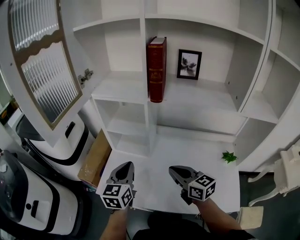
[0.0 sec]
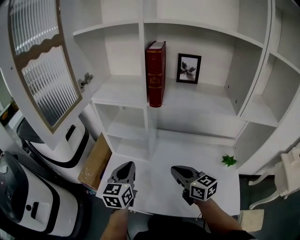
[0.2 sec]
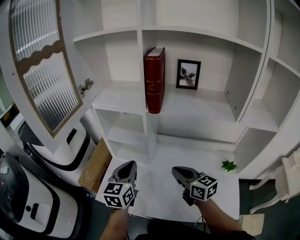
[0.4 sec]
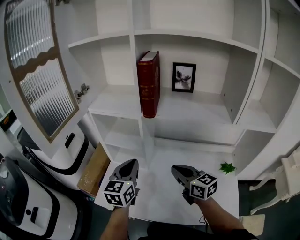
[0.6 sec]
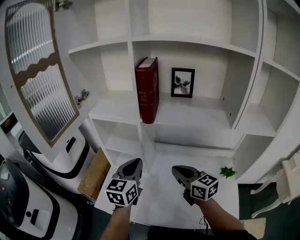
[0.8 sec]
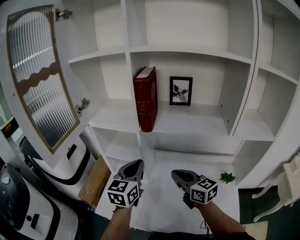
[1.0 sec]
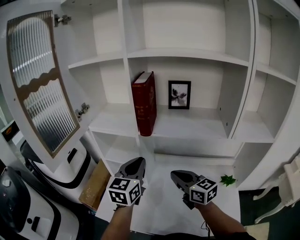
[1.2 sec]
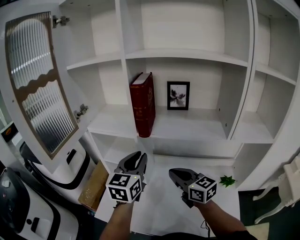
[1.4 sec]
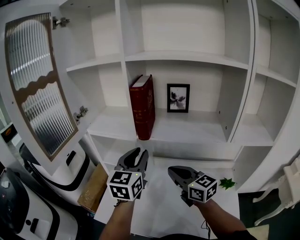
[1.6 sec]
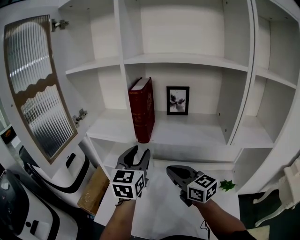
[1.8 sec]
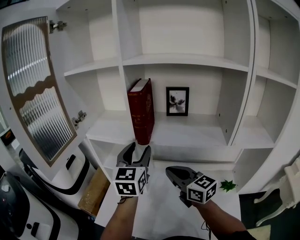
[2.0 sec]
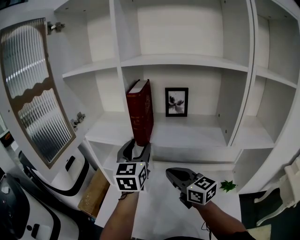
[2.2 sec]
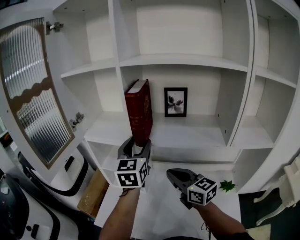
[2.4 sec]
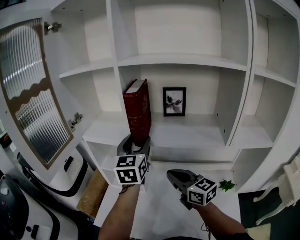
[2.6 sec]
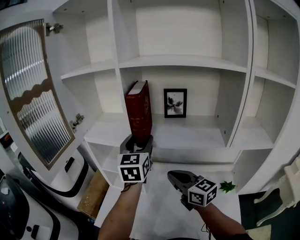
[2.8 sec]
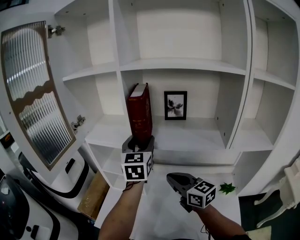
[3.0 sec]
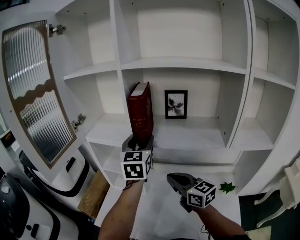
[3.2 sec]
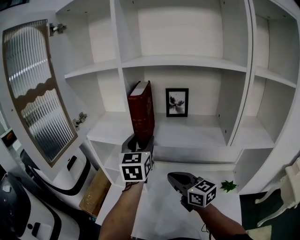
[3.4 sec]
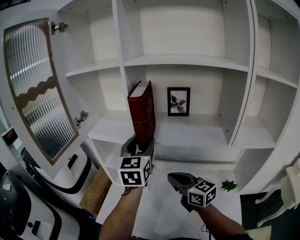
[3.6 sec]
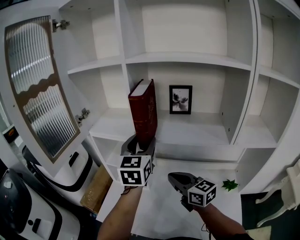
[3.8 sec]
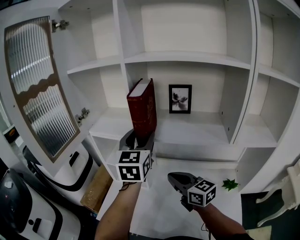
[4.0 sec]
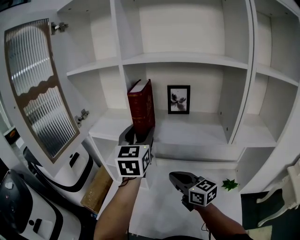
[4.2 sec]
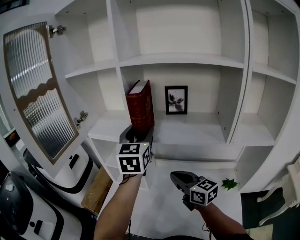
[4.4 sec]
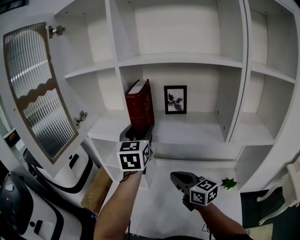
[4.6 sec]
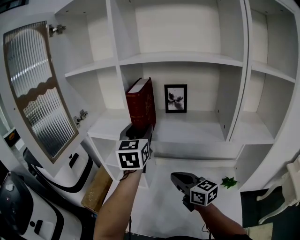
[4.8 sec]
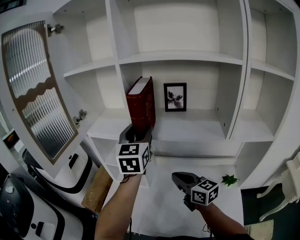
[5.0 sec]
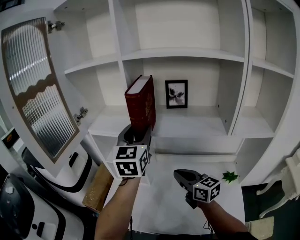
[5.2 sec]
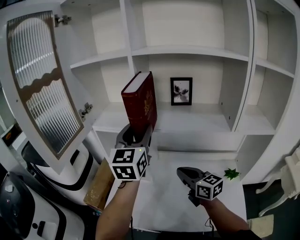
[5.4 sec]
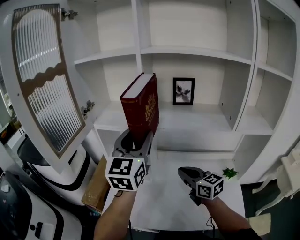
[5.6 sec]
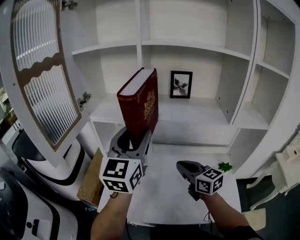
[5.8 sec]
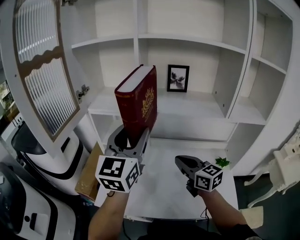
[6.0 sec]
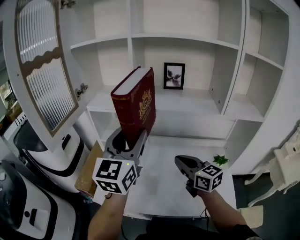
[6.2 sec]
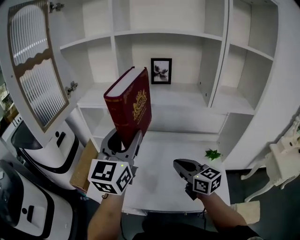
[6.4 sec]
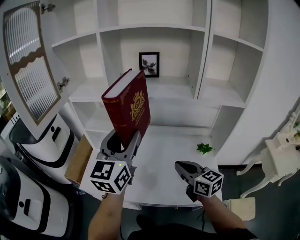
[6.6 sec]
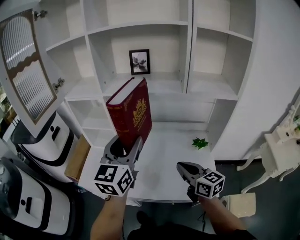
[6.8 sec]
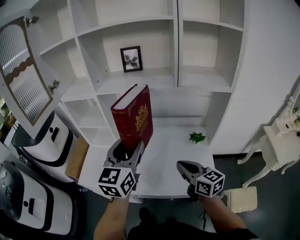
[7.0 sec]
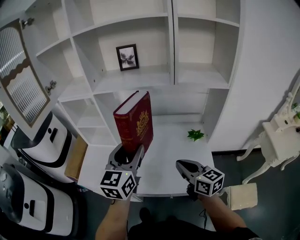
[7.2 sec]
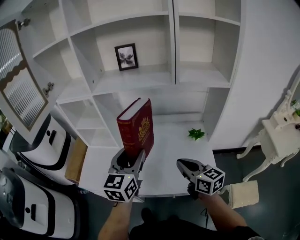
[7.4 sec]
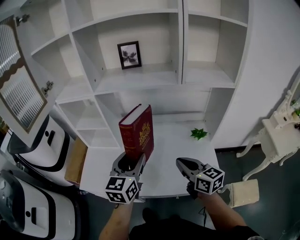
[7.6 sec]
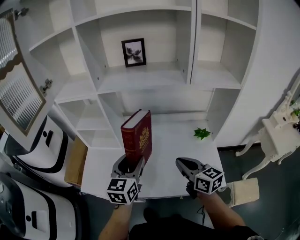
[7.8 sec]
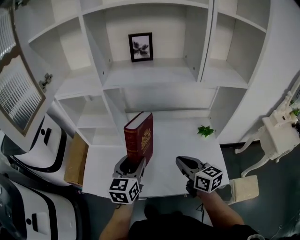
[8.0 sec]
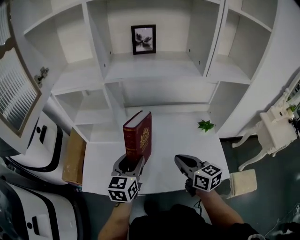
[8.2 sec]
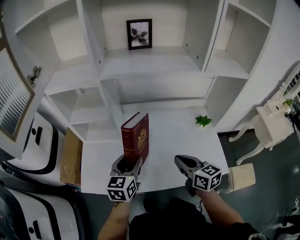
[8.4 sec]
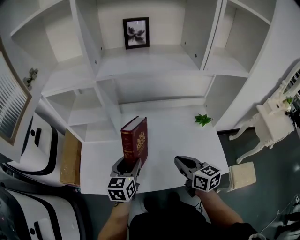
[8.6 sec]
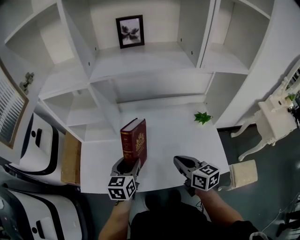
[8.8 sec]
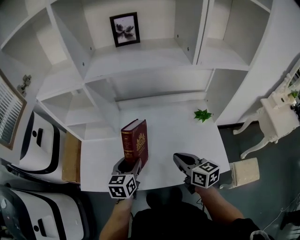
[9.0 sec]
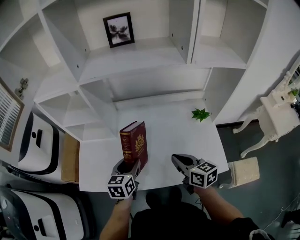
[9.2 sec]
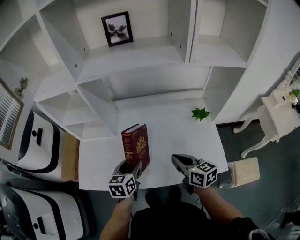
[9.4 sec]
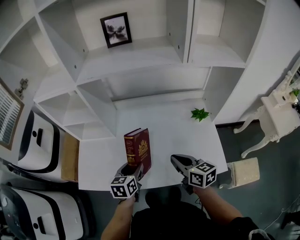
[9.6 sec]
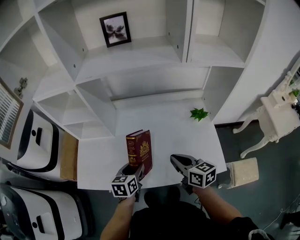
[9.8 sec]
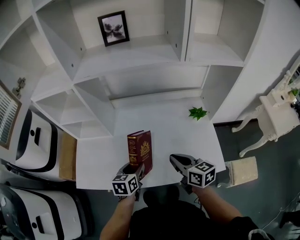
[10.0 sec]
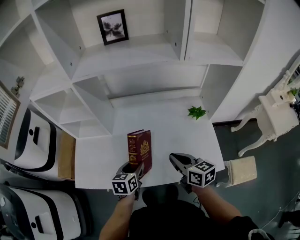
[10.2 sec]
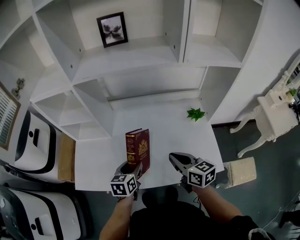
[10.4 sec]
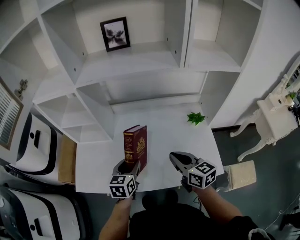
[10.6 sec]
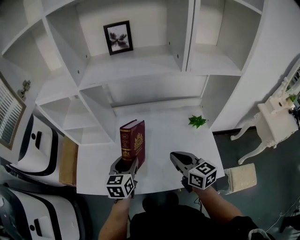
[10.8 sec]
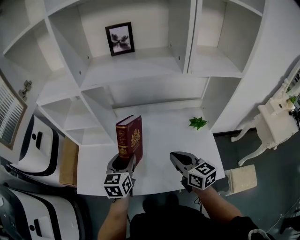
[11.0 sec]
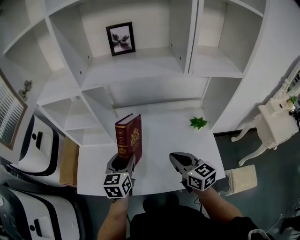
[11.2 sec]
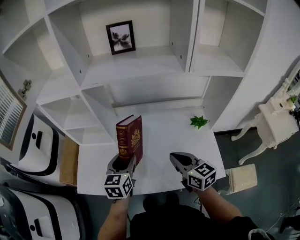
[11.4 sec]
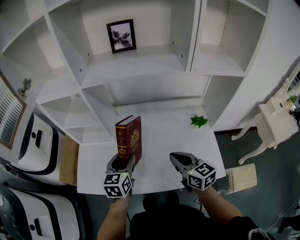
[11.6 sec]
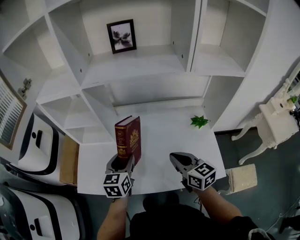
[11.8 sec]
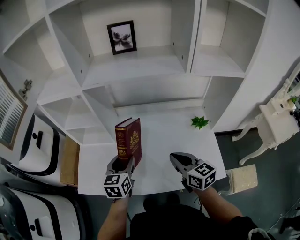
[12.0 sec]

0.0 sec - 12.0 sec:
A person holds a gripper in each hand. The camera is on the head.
0.0 sec - 1.6 sec: The left gripper goes roughly 25 cm upward, to the right and forward, and opens up; the right gripper heads upward, forward and to the right, covering roughly 15 cm.
1.6 sec - 3.0 sec: The left gripper is displaced forward by approximately 10 cm, and opens up.
3.0 sec - 4.4 sec: The grippers stay close to where they were, moving slightly.
4.4 sec - 6.0 sec: The right gripper ends up about 5 cm from where it was; the left gripper is displaced backward and to the left by approximately 15 cm.
6.0 sec - 7.6 sec: The right gripper moves to the right, backward and downward, some 25 cm; the left gripper travels downward, to the right and backward by some 30 cm, and turns by roughly 20 degrees.
7.6 sec - 9.0 sec: The left gripper is displaced downward and to the left by about 20 cm, and rotates some 20 degrees, while the right gripper heads downward and to the left, covering roughly 10 cm.
9.0 sec - 10.4 sec: The left gripper heads downward, covering about 5 cm.
10.4 sec - 12.0 sec: The left gripper travels upward by about 10 cm.

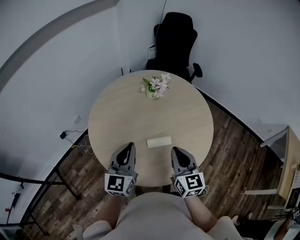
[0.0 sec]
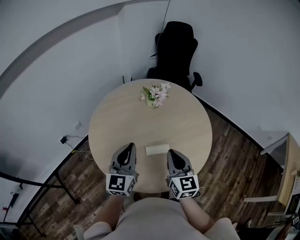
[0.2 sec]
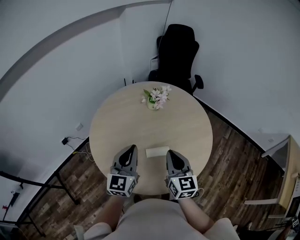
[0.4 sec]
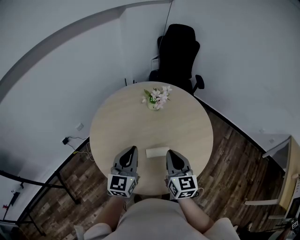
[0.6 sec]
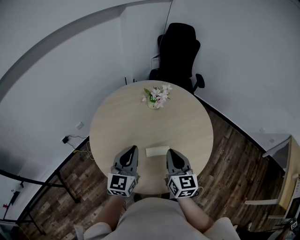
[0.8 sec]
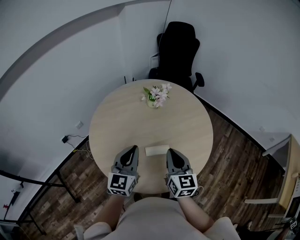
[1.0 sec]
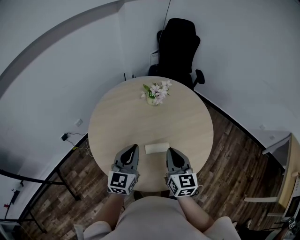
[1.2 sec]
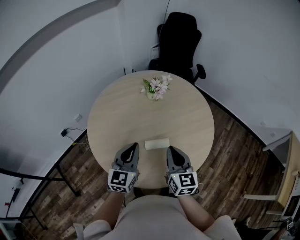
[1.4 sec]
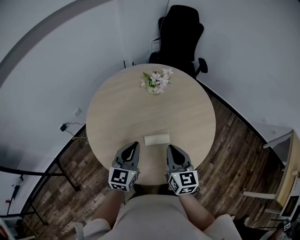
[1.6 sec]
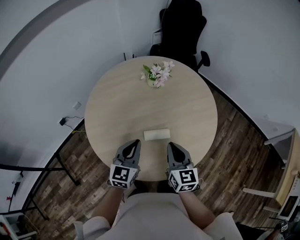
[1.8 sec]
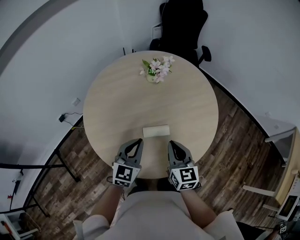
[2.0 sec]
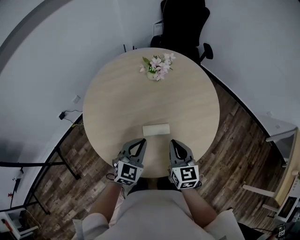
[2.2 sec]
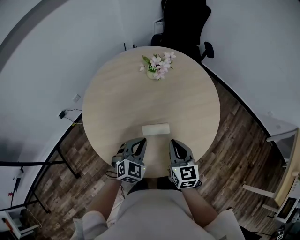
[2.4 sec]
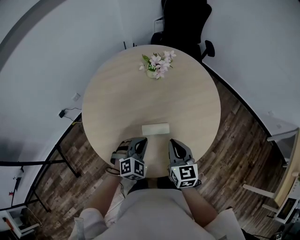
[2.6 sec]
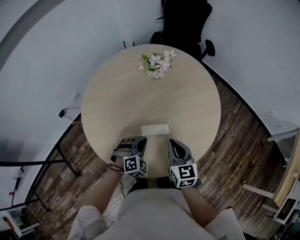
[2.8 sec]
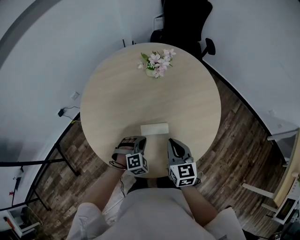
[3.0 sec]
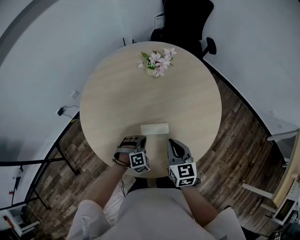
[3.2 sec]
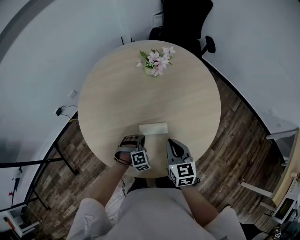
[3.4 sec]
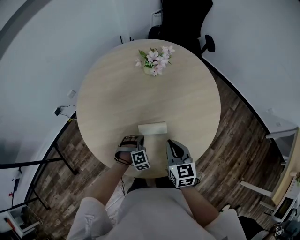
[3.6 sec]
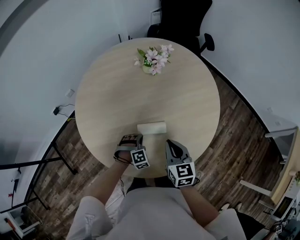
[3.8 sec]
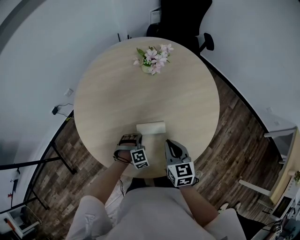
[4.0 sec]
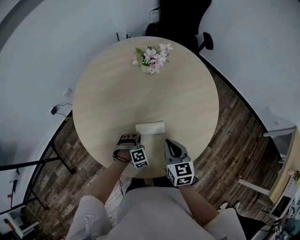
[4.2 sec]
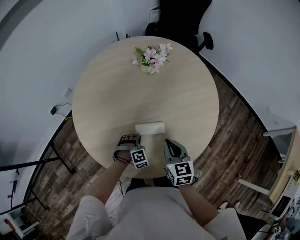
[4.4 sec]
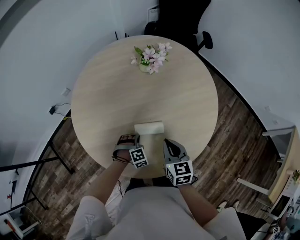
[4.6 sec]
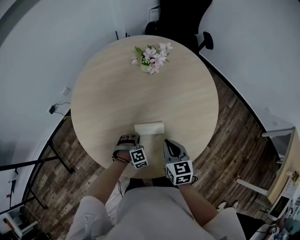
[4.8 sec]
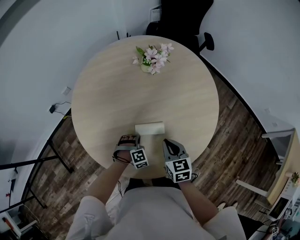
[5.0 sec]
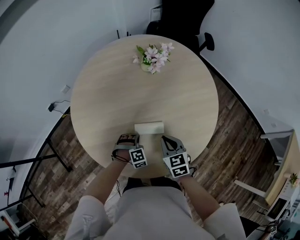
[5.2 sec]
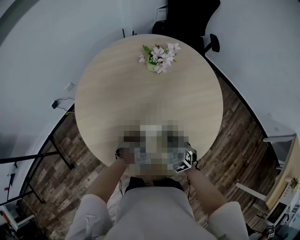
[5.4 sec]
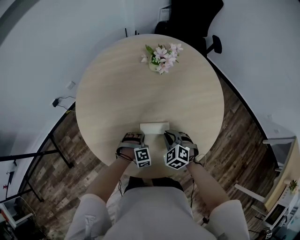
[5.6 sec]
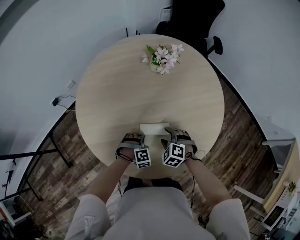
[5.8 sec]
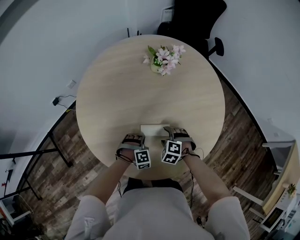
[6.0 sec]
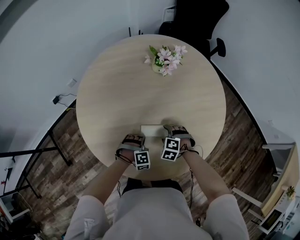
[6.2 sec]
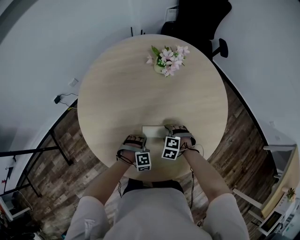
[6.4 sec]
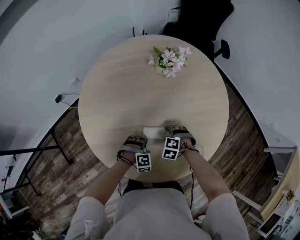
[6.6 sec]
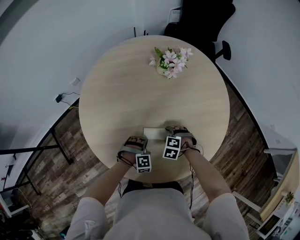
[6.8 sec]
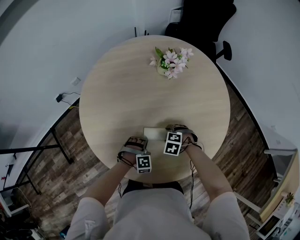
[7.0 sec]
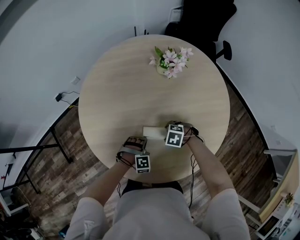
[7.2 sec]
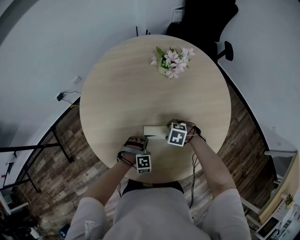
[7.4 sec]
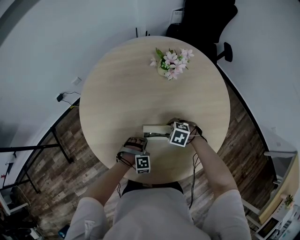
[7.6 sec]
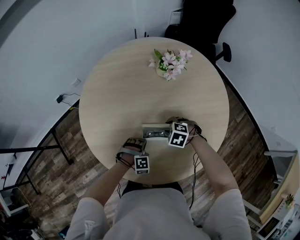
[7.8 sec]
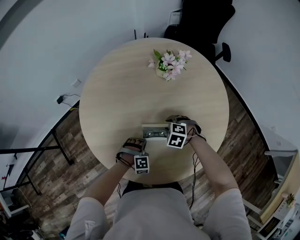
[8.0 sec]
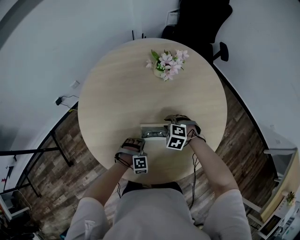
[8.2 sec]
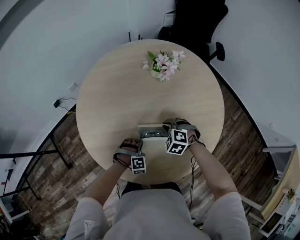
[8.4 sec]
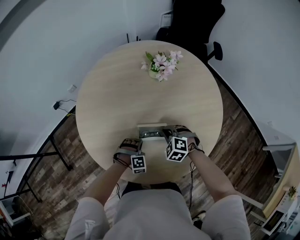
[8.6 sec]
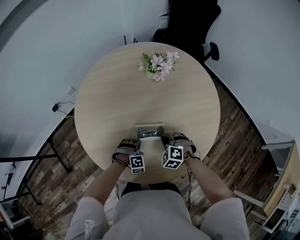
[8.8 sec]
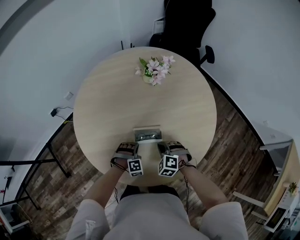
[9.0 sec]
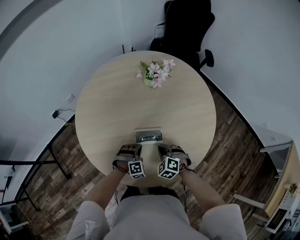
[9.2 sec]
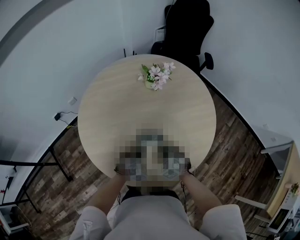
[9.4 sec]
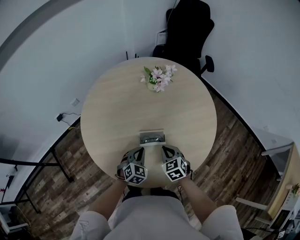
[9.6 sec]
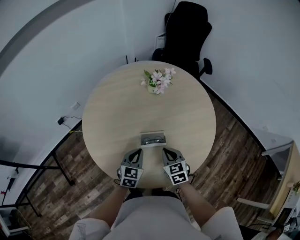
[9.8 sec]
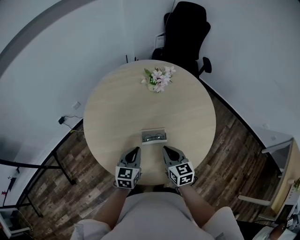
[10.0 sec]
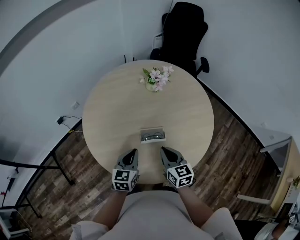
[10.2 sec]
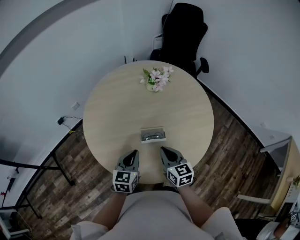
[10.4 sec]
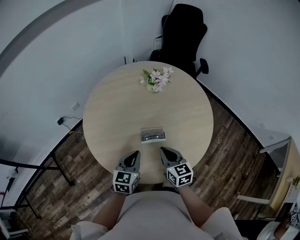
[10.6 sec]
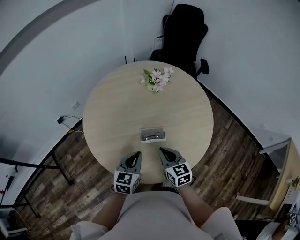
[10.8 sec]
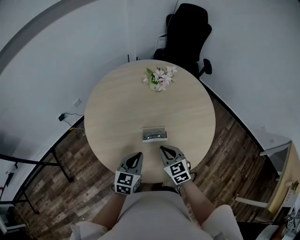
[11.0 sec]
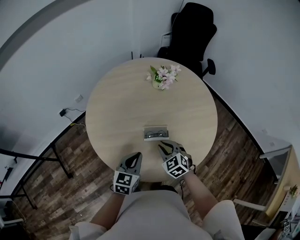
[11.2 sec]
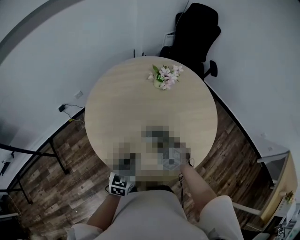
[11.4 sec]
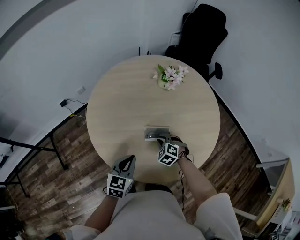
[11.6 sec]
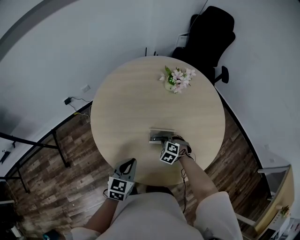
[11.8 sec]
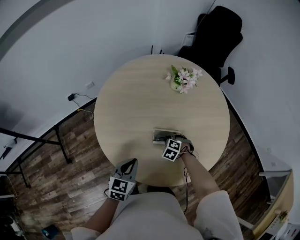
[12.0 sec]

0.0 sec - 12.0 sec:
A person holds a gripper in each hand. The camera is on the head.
0.0 sec - 1.6 sec: The left gripper moves downward, roughly 5 cm.
1.6 sec - 3.0 sec: The right gripper heads downward, covering some 10 cm, while the left gripper travels downward by approximately 20 cm, and twists some 50 degrees clockwise, seen from behind.
3.0 sec - 4.4 sec: The left gripper goes some 10 cm downward.
4.4 sec - 6.0 sec: The right gripper moves downward, approximately 15 cm, rotates around the line of its fingers by about 70 degrees, counterclockwise from behind, and opens its fingers.
6.0 sec - 7.6 sec: The right gripper shifts by roughly 5 cm.
7.6 sec - 9.0 sec: The right gripper moves approximately 10 cm, turns by approximately 30 degrees, and closes.
9.0 sec - 10.4 sec: Both grippers travel together upward, about 20 cm. The right gripper rotates around the line of its fingers by roughly 60 degrees, clockwise from behind. The left gripper rolls counterclockwise, seen from behind, by about 80 degrees.
10.4 sec - 12.0 sec: The right gripper heads downward and forward, covering roughly 20 cm, and tilts its fingers some 50 degrees downward. Meanwhile the left gripper is displaced to the left by about 5 cm.
